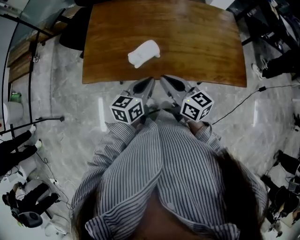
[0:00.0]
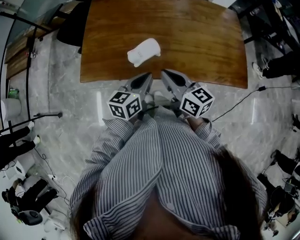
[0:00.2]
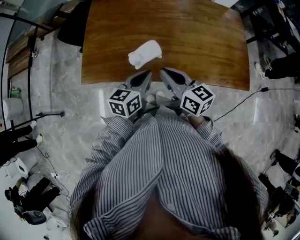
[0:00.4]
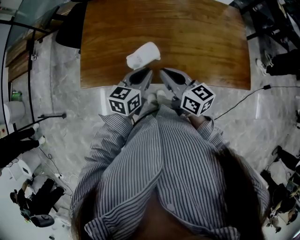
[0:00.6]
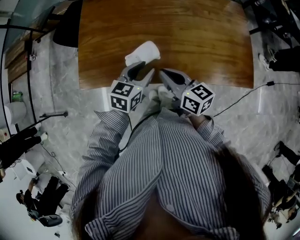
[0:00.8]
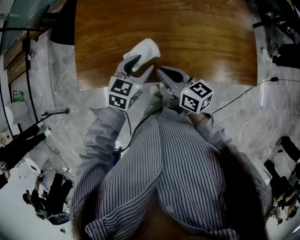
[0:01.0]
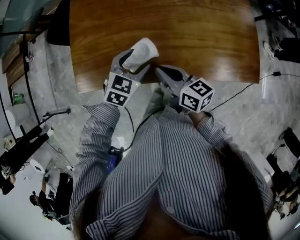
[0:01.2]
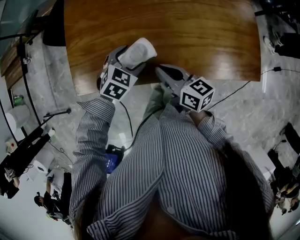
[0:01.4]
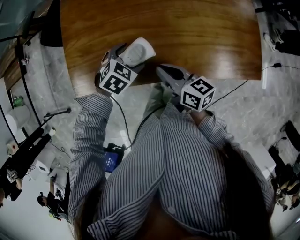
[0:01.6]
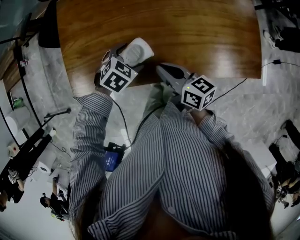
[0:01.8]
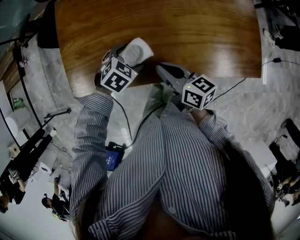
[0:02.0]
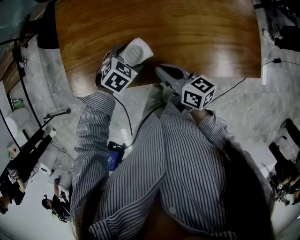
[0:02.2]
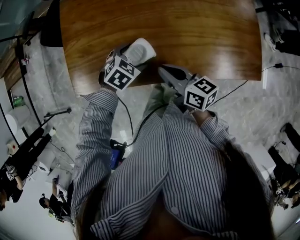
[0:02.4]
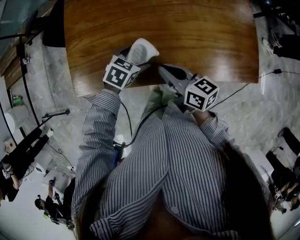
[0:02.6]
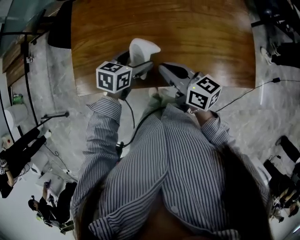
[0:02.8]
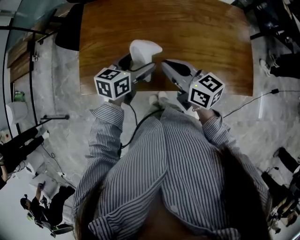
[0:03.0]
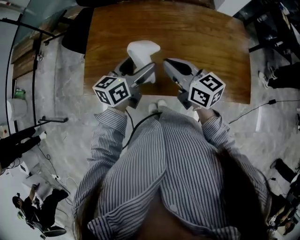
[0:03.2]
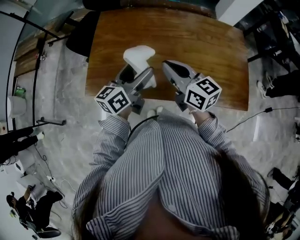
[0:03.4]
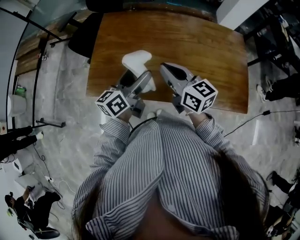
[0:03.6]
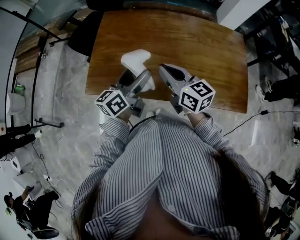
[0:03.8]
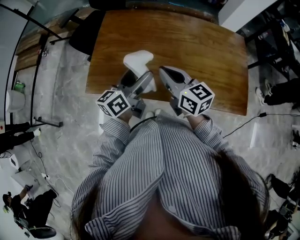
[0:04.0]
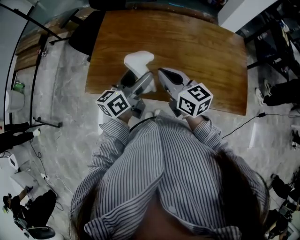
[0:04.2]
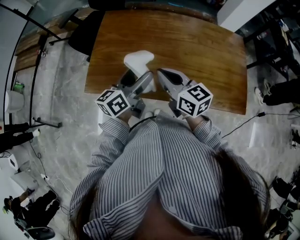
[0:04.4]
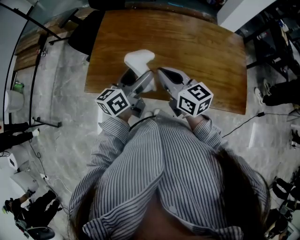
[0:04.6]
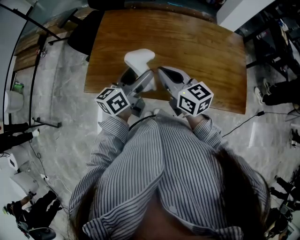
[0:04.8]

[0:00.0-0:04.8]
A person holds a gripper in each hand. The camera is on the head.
0:00.0 to 0:01.6: Both grippers travel together forward and downward, about 15 cm. The left gripper points its fingers some 40 degrees further downward, and opens its fingers.
0:01.6 to 0:03.2: The grippers both shift upward by roughly 15 cm. The right gripper turns by some 20 degrees, while the left gripper points its fingers roughly 50 degrees further upward.
0:03.2 to 0:04.8: The grippers make only small movements.

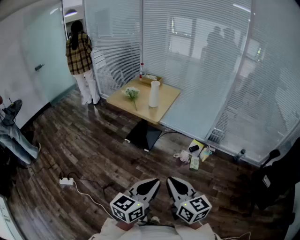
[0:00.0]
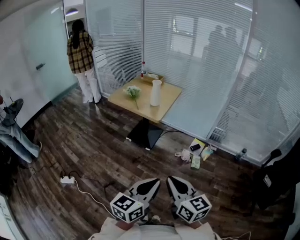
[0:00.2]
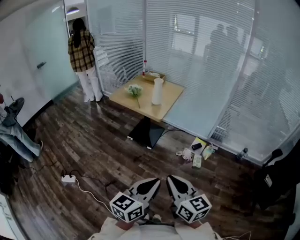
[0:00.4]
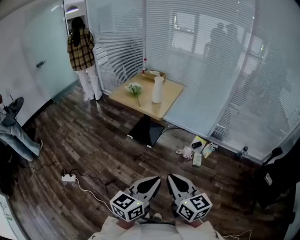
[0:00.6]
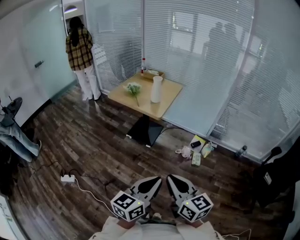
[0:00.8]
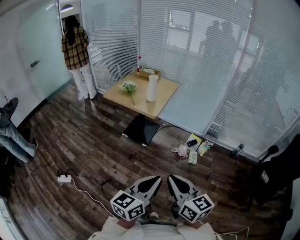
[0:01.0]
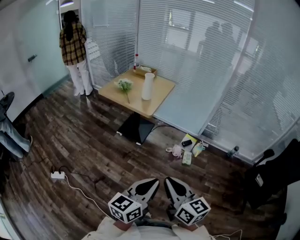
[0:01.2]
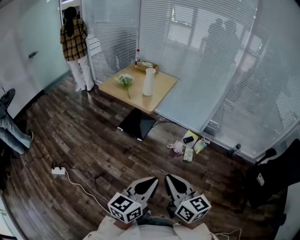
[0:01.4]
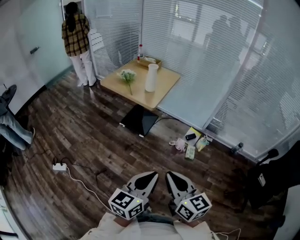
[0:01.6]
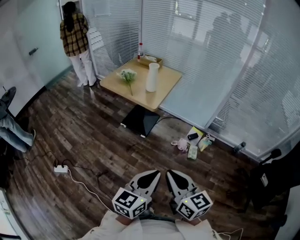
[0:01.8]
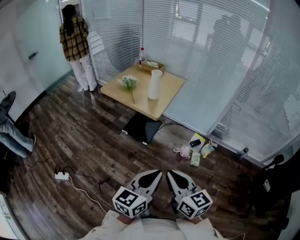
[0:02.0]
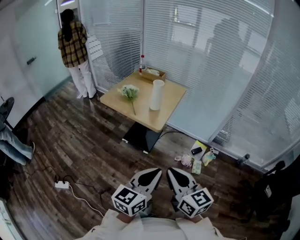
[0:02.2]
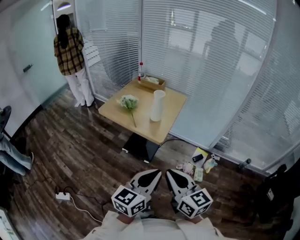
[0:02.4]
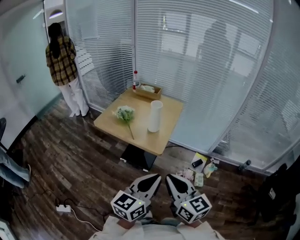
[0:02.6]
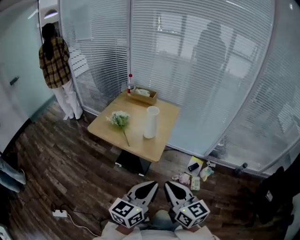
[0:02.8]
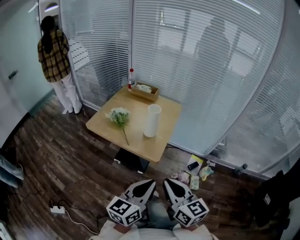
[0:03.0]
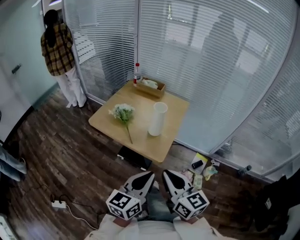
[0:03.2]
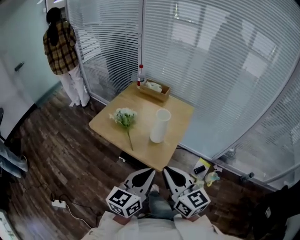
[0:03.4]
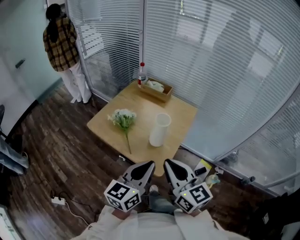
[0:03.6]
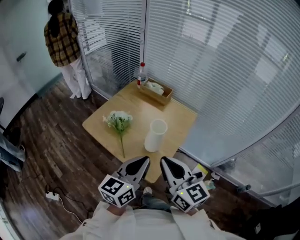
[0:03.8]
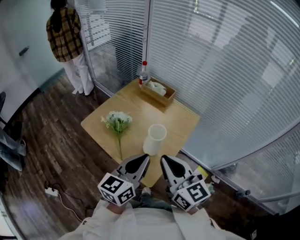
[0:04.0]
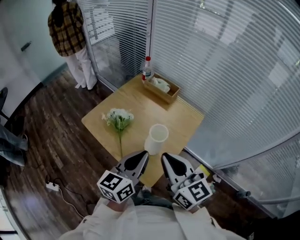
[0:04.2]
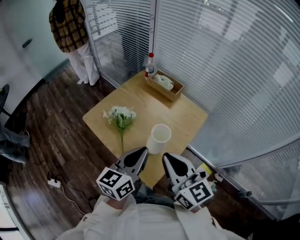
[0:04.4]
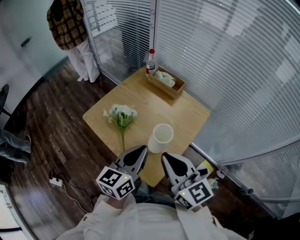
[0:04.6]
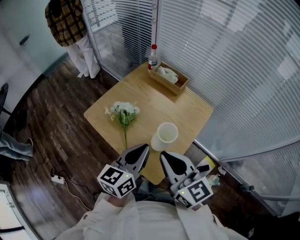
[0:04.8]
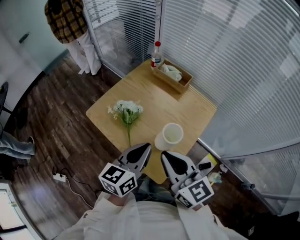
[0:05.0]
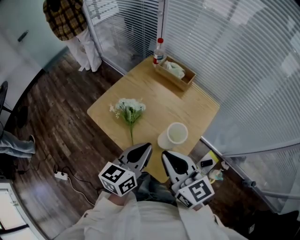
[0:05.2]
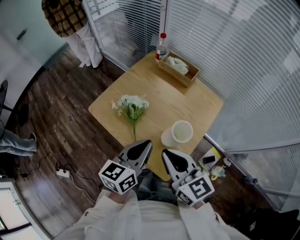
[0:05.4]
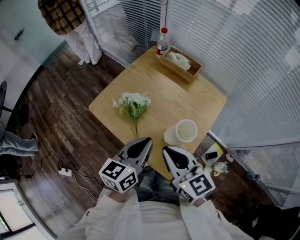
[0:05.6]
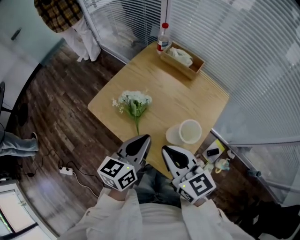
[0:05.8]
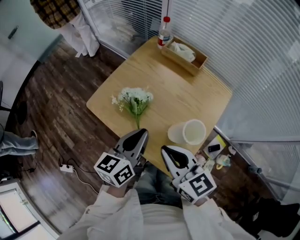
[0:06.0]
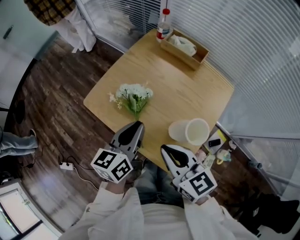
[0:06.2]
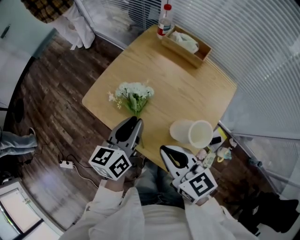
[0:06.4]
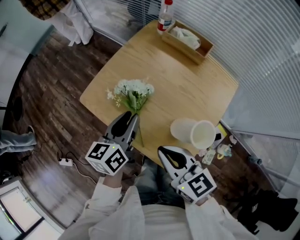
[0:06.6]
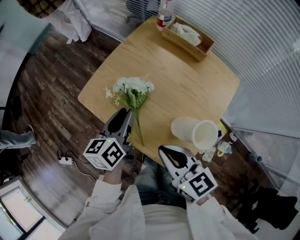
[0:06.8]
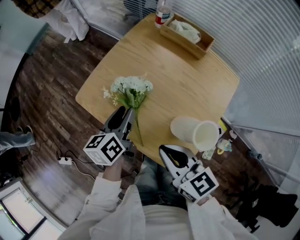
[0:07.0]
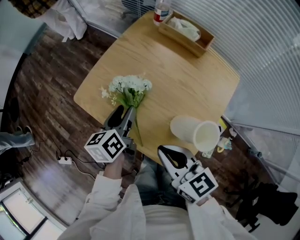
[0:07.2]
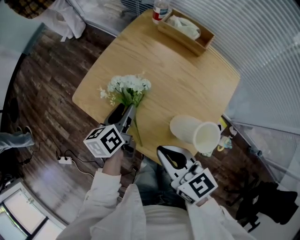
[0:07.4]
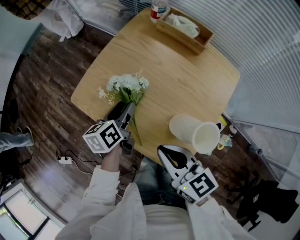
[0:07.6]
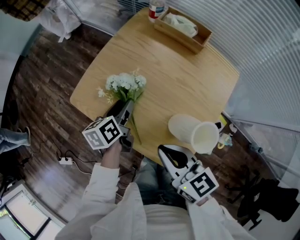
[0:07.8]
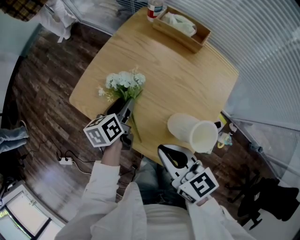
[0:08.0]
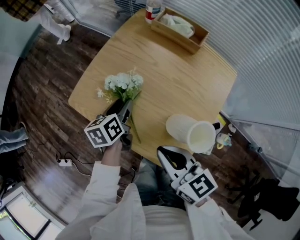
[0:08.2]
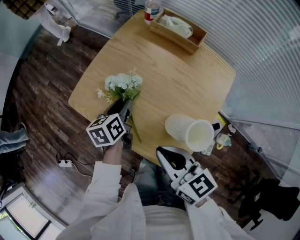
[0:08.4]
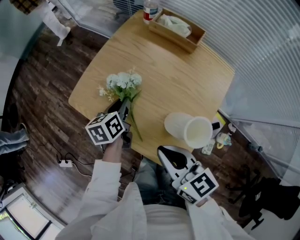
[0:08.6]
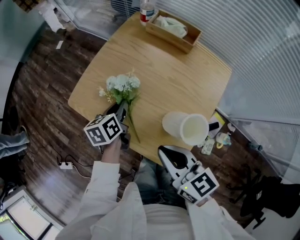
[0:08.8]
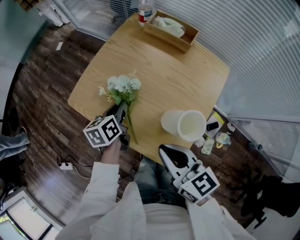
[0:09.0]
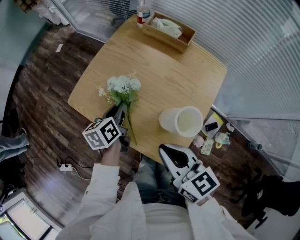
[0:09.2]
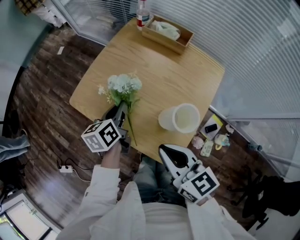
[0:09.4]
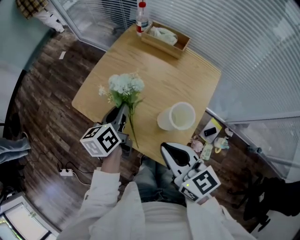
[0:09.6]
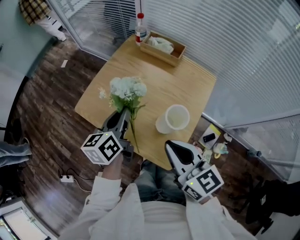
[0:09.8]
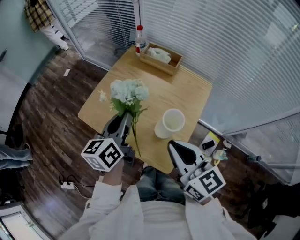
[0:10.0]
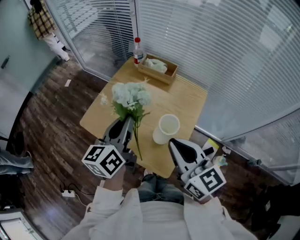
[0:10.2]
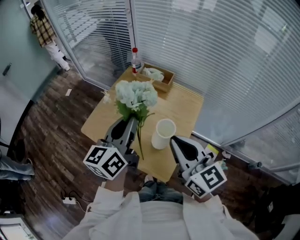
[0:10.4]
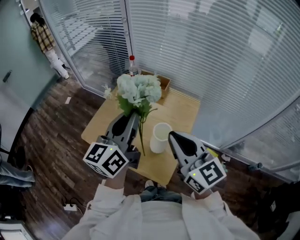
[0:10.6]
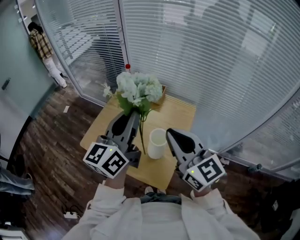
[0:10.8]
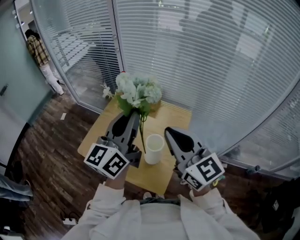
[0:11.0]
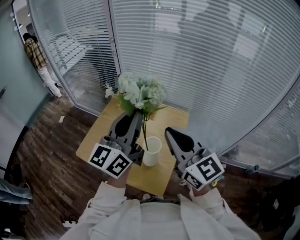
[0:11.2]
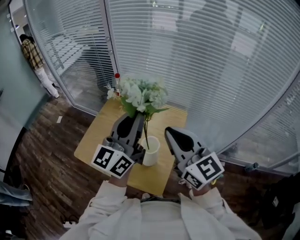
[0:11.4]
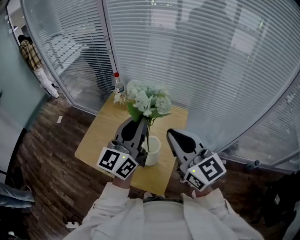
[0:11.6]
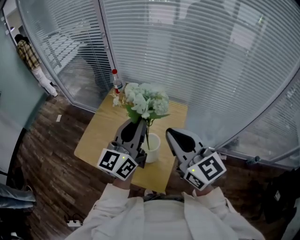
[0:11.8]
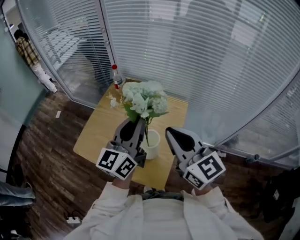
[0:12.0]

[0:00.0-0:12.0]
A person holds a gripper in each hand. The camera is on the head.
0:00.0 to 0:01.6: The left gripper ends up approximately 5 cm from where it was.
0:01.6 to 0:03.0: The two grippers go roughly 35 cm forward.
0:03.0 to 0:04.4: The two grippers go some 30 cm forward. The right gripper turns by approximately 20 degrees. The left gripper turns by approximately 20 degrees.
0:04.4 to 0:06.0: The right gripper heads to the left and downward, covering approximately 15 cm. Meanwhile the left gripper goes approximately 15 cm to the left, downward and forward.
0:06.0 to 0:07.6: The left gripper is displaced downward and forward by approximately 15 cm, changes its angle by some 30 degrees, and opens. The right gripper travels downward by roughly 5 cm.
0:07.6 to 0:09.0: The left gripper closes up.
0:09.0 to 0:10.4: The left gripper is displaced upward by some 30 cm, and tips its fingers upward by about 40 degrees; the right gripper travels upward and to the right by about 15 cm, and rotates about 30 degrees.
0:10.4 to 0:12.0: The right gripper ends up some 5 cm from where it was. Meanwhile the left gripper is displaced to the right by about 10 cm, and goes upward and returns, about 10 cm each way.

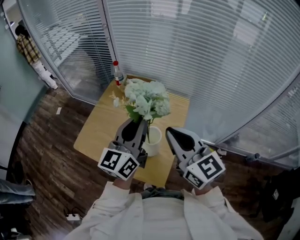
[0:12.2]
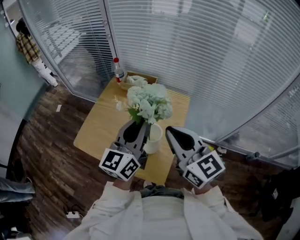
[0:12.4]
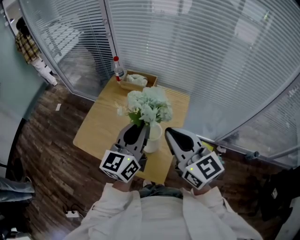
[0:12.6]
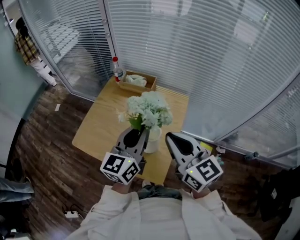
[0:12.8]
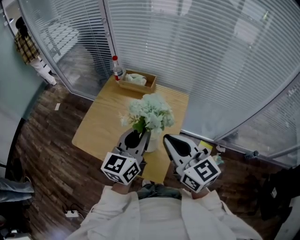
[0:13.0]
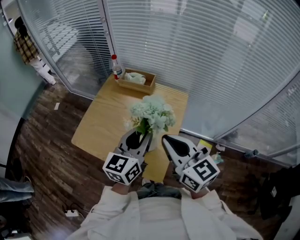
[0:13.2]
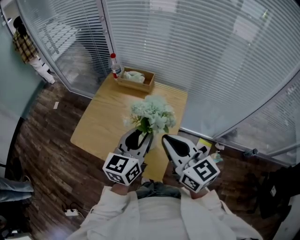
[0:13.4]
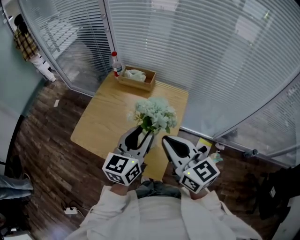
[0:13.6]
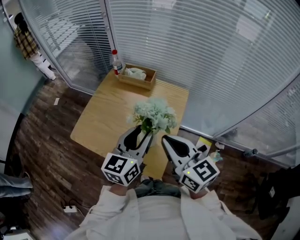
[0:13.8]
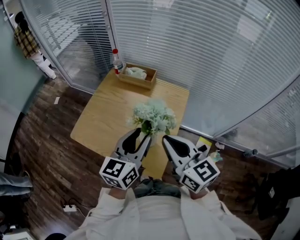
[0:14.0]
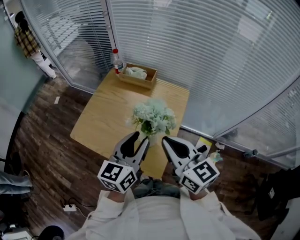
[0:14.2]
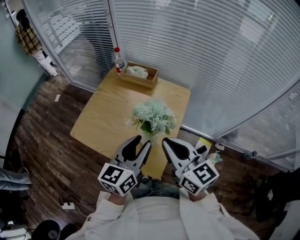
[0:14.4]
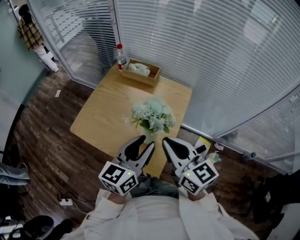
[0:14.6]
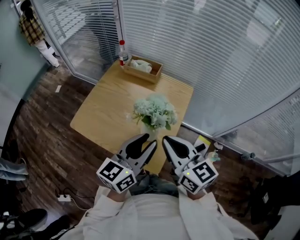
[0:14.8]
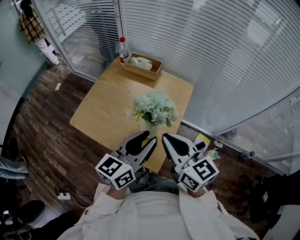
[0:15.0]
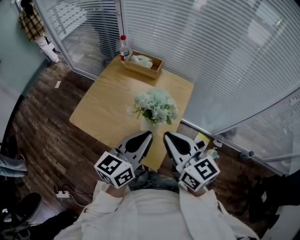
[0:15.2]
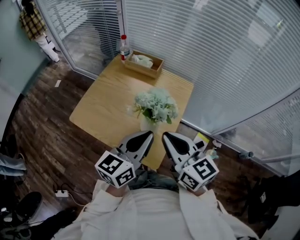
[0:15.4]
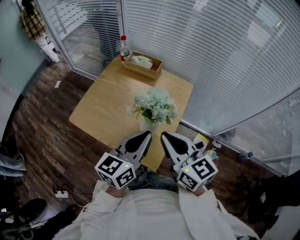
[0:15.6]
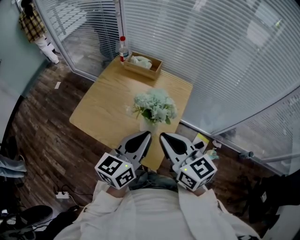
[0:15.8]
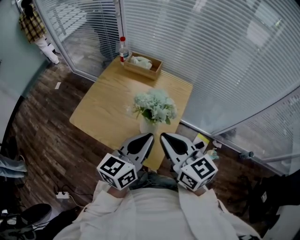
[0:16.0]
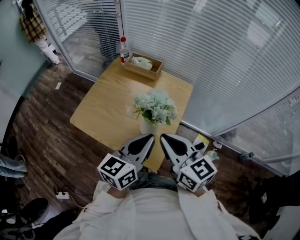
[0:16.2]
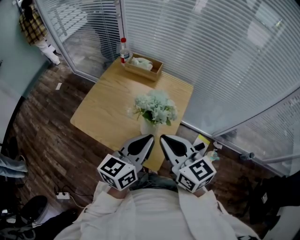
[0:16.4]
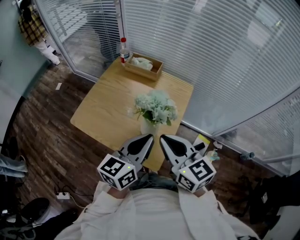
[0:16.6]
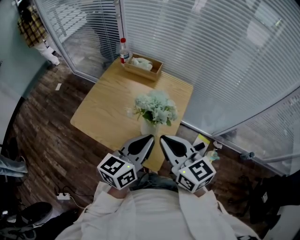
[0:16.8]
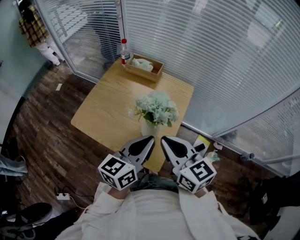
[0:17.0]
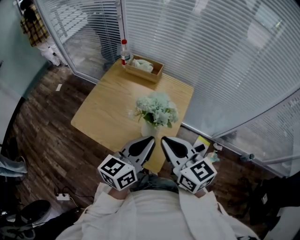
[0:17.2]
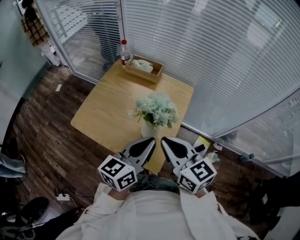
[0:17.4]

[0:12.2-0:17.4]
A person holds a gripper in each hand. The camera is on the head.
0:12.2 to 0:14.0: The right gripper goes about 5 cm downward; the left gripper is displaced downward and backward by roughly 10 cm, and opens up.
0:14.0 to 0:15.6: The left gripper closes.
0:15.6 to 0:17.4: The grippers move only a little.

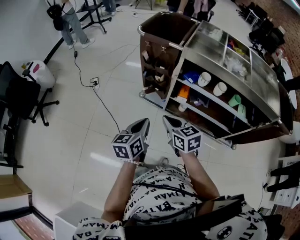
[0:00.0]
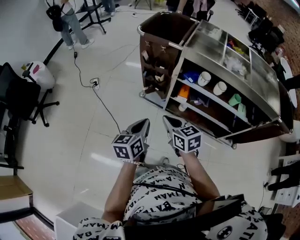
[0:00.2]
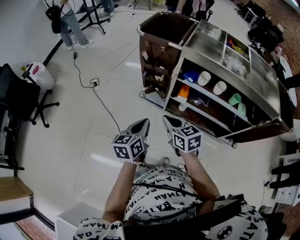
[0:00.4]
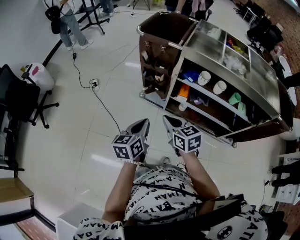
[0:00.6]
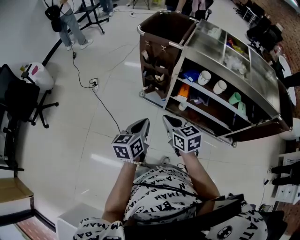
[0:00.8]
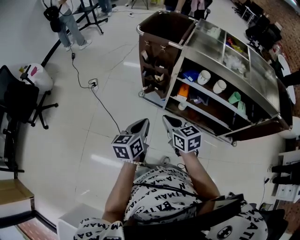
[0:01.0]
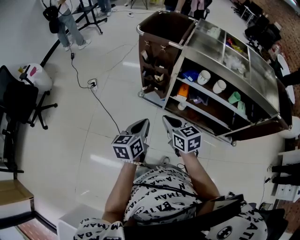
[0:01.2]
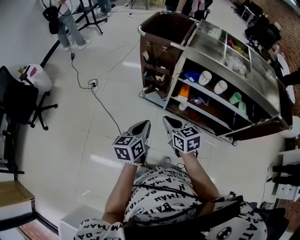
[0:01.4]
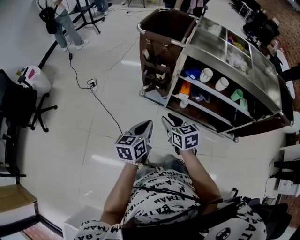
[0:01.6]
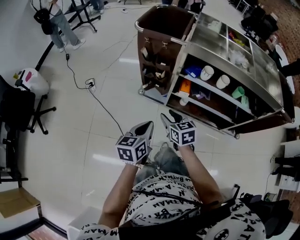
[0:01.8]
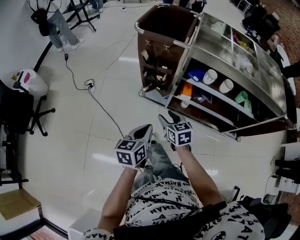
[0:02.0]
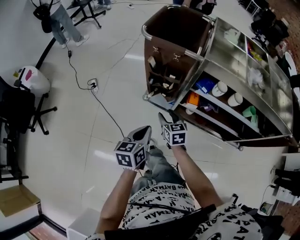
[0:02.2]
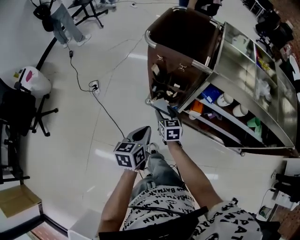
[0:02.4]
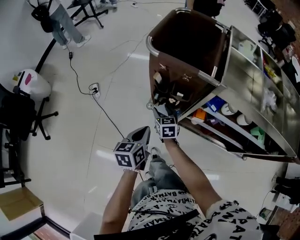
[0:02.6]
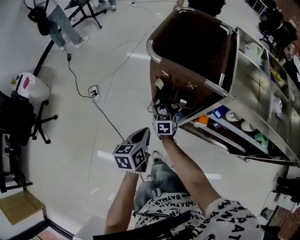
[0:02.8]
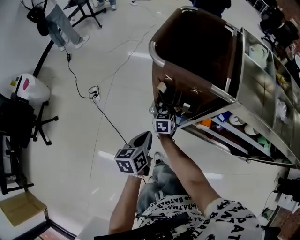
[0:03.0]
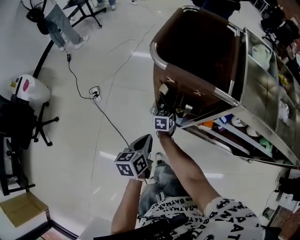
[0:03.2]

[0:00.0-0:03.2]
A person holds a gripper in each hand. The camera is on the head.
0:00.0 to 0:01.6: The right gripper opens up.
0:01.6 to 0:03.2: The left gripper shifts roughly 30 cm forward, downward and to the left; the right gripper goes approximately 50 cm forward and downward, turns by roughly 30 degrees, and opens up.
